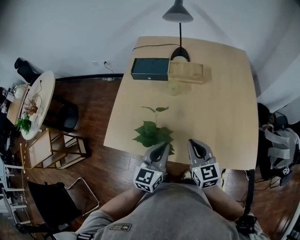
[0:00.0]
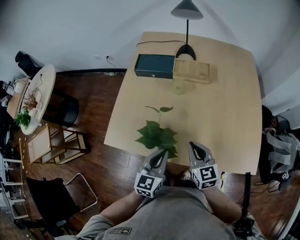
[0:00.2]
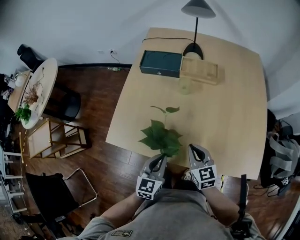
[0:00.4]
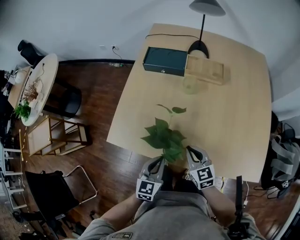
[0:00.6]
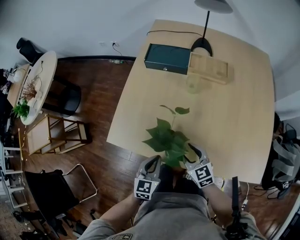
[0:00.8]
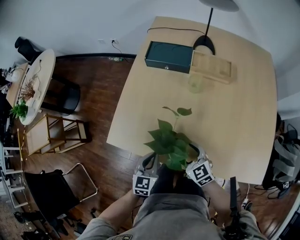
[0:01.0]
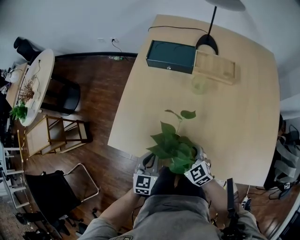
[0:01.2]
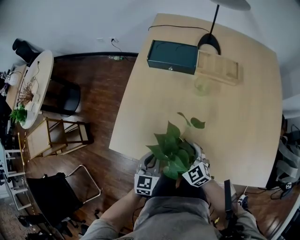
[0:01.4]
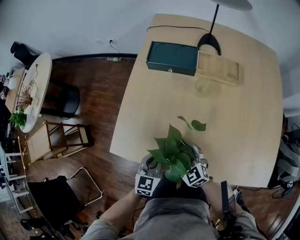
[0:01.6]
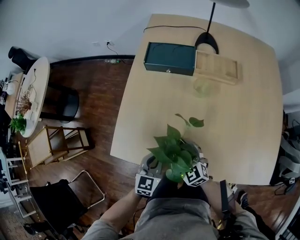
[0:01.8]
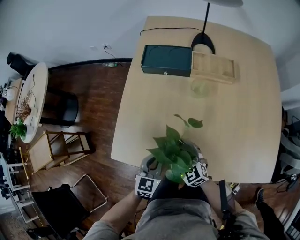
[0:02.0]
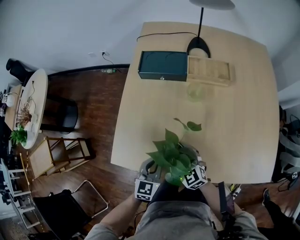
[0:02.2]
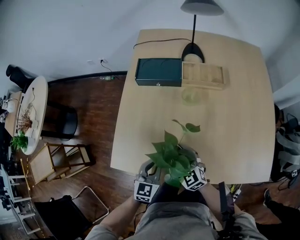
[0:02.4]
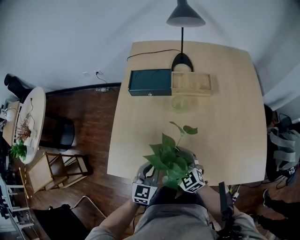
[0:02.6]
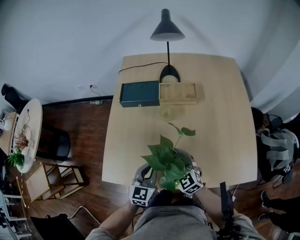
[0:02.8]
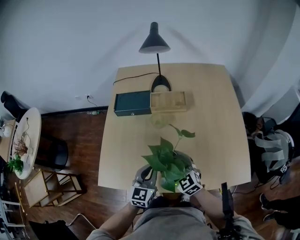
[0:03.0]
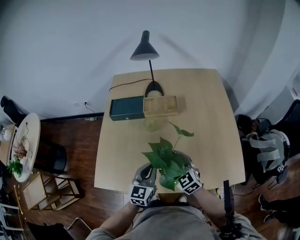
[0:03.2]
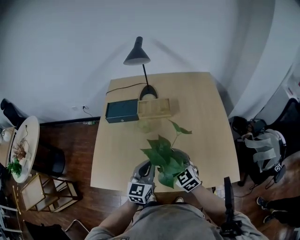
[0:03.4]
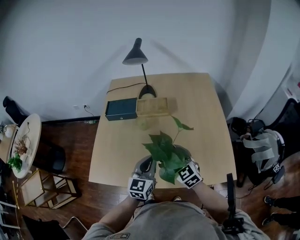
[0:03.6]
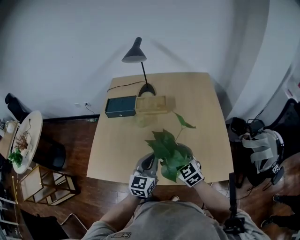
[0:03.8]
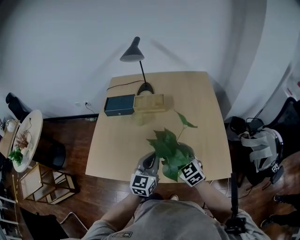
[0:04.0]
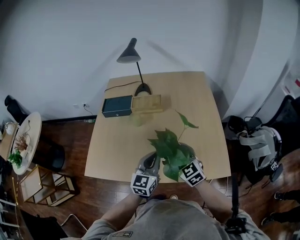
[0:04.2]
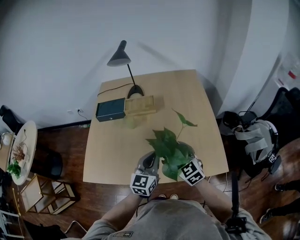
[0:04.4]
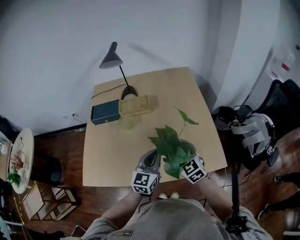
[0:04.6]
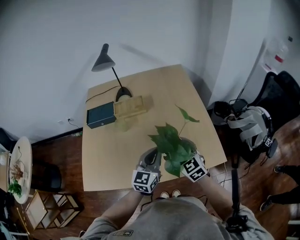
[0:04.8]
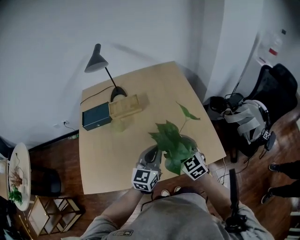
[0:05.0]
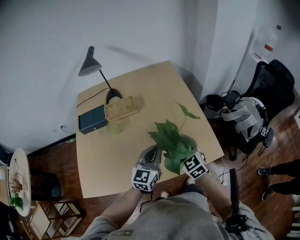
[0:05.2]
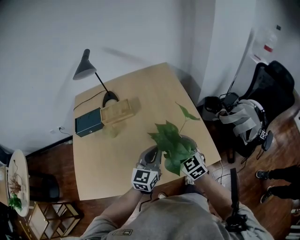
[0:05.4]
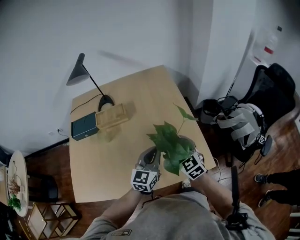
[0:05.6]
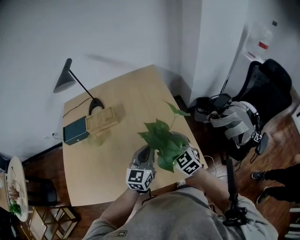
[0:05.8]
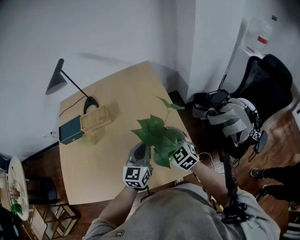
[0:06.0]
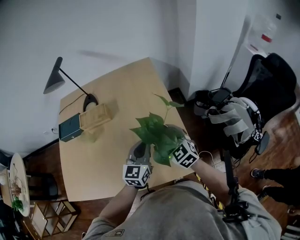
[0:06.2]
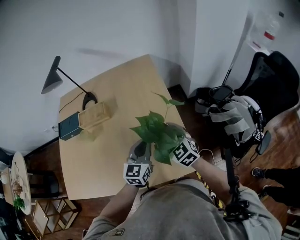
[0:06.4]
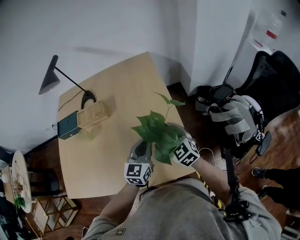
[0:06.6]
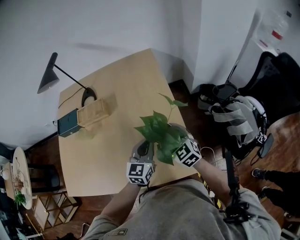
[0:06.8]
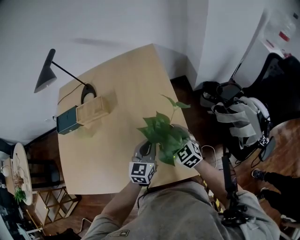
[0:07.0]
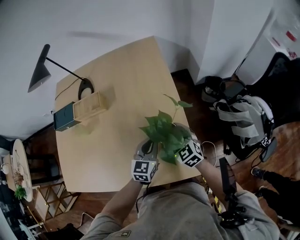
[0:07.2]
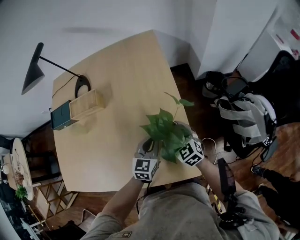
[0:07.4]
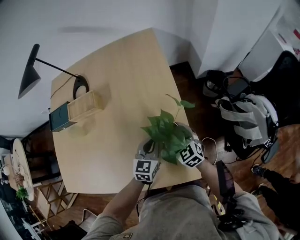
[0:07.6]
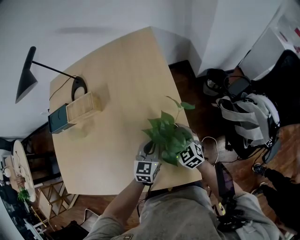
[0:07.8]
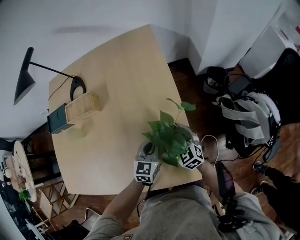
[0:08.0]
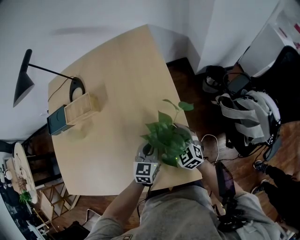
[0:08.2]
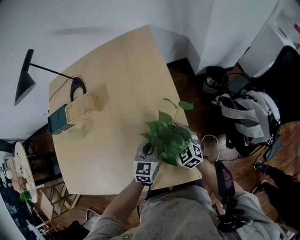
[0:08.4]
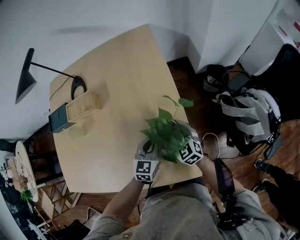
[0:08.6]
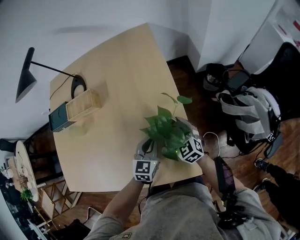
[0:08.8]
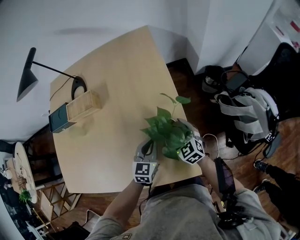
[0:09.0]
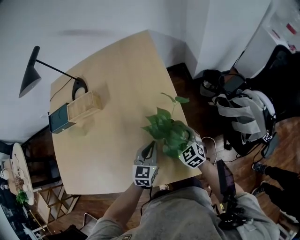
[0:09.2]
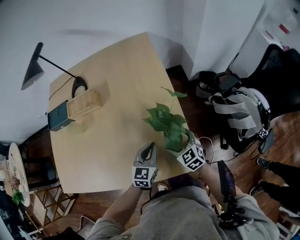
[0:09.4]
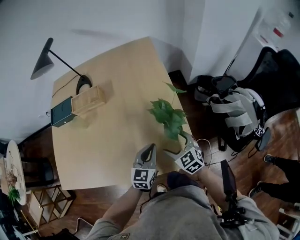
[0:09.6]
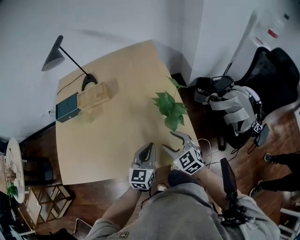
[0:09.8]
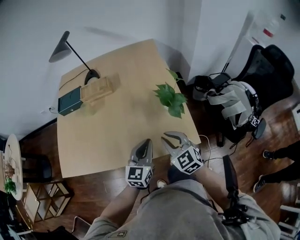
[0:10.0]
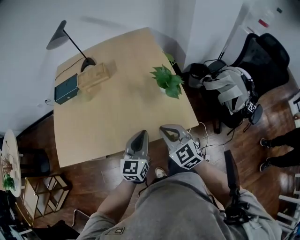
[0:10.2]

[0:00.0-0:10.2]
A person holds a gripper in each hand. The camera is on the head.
0:00.0 to 0:01.4: The grippers both shift downward and to the left by approximately 20 cm. The right gripper swivels about 40 degrees, and opens its fingers.
0:01.4 to 0:03.0: The left gripper heads to the right and upward, covering about 15 cm, and rotates about 20 degrees, while the right gripper moves upward and to the right, some 15 cm.
0:03.0 to 0:04.4: The two grippers go roughly 20 cm to the right and upward.
0:04.4 to 0:05.8: The grippers both shift to the right and forward by approximately 20 cm.
0:05.8 to 0:07.2: The two grippers go approximately 15 cm downward, to the right and forward.
0:07.2 to 0:08.8: The right gripper goes roughly 5 cm downward.
0:08.8 to 0:10.2: Both grippers travel together backward, upward and to the left, some 30 cm. The right gripper closes its fingers.

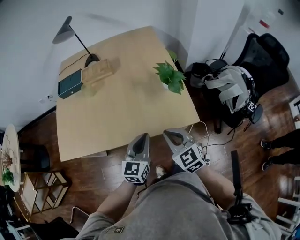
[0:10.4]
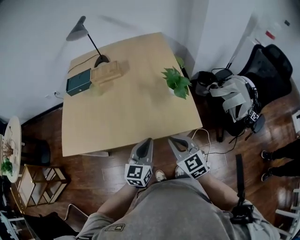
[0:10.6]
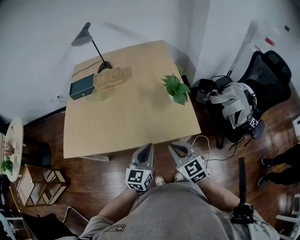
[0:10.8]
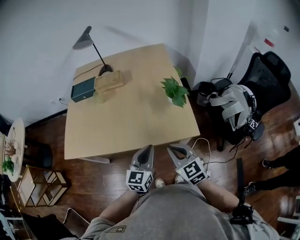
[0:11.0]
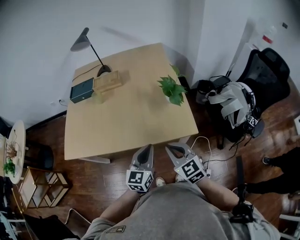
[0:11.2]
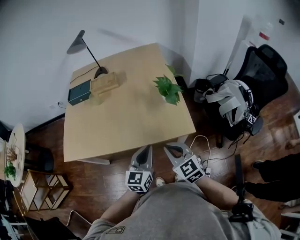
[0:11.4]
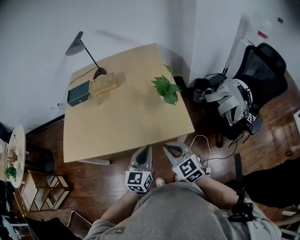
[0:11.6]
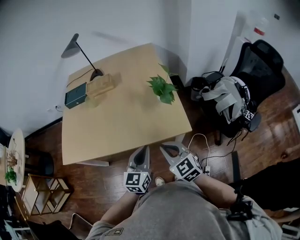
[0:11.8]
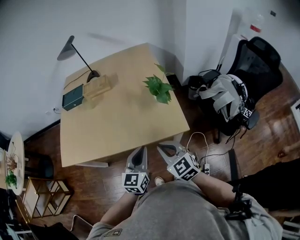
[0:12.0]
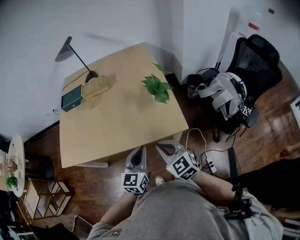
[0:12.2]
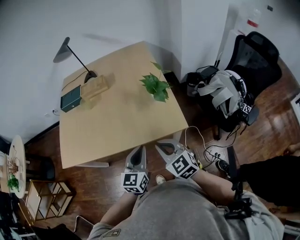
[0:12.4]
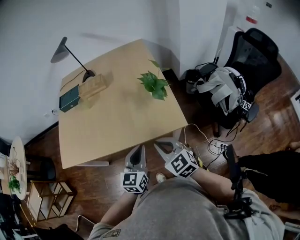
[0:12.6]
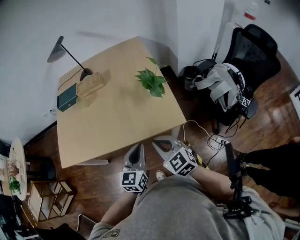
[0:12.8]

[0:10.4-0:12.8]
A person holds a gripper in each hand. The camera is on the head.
0:10.4 to 0:11.6: The right gripper heads backward, covering some 5 cm; the left gripper ends up roughly 5 cm from where it was.
0:11.6 to 0:12.8: The two grippers keep their place.

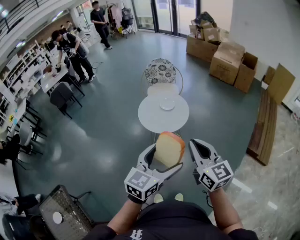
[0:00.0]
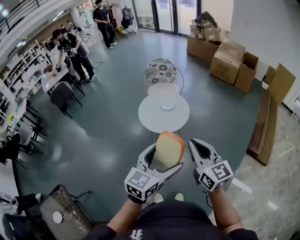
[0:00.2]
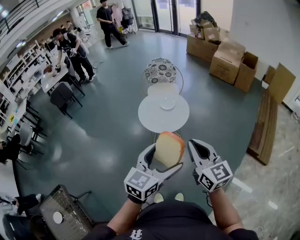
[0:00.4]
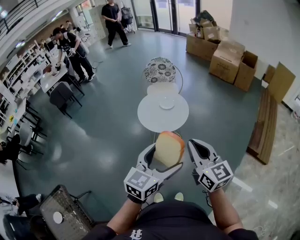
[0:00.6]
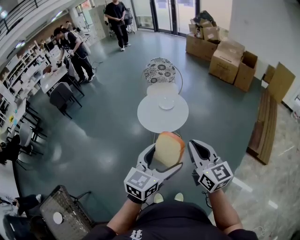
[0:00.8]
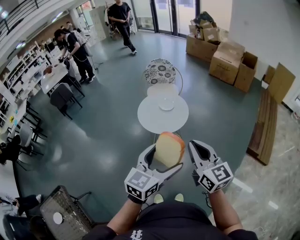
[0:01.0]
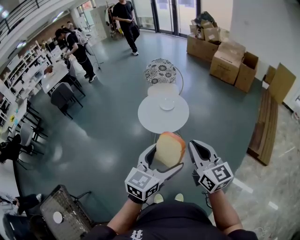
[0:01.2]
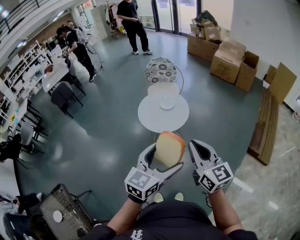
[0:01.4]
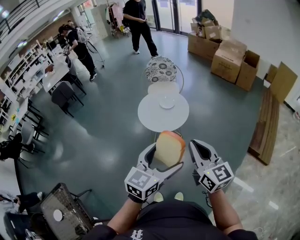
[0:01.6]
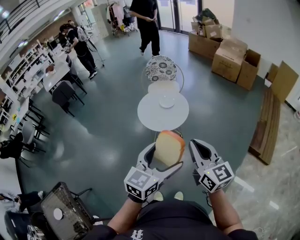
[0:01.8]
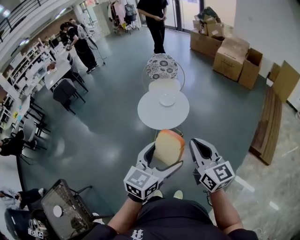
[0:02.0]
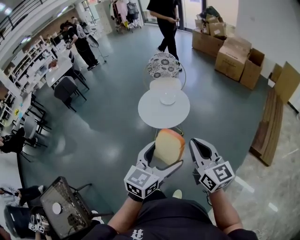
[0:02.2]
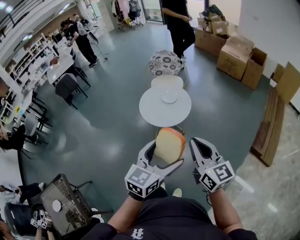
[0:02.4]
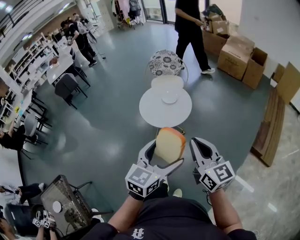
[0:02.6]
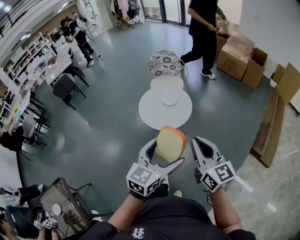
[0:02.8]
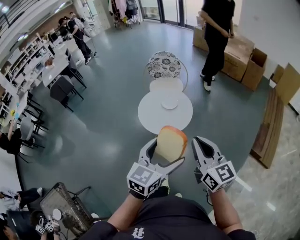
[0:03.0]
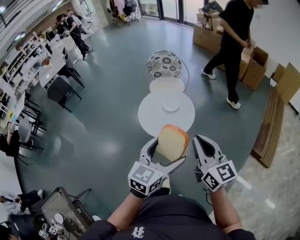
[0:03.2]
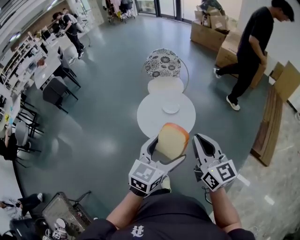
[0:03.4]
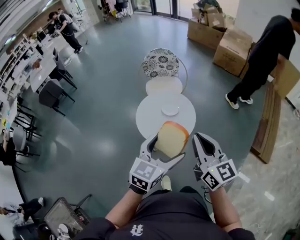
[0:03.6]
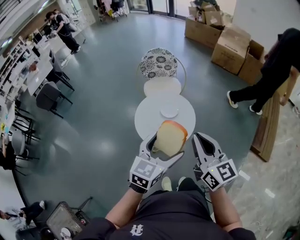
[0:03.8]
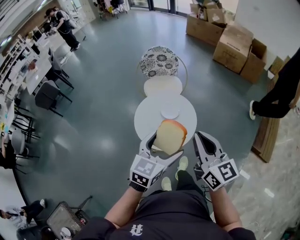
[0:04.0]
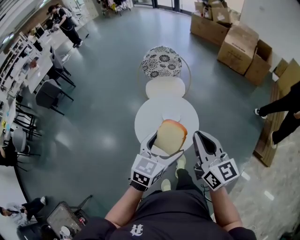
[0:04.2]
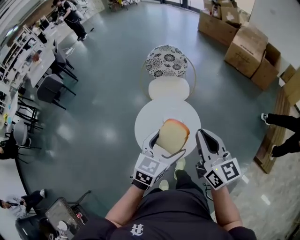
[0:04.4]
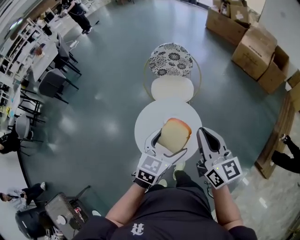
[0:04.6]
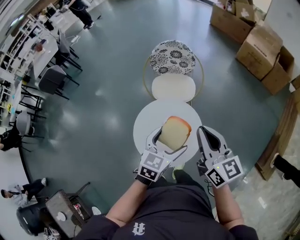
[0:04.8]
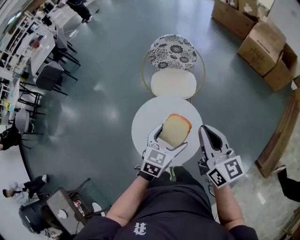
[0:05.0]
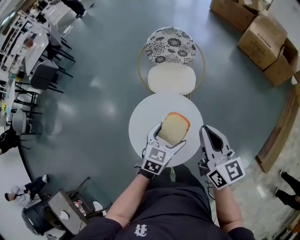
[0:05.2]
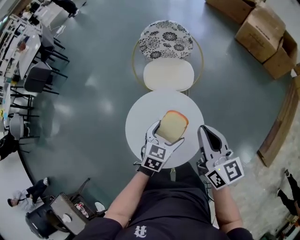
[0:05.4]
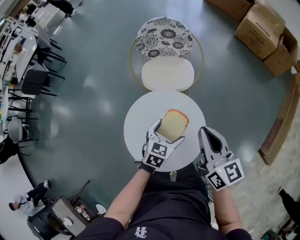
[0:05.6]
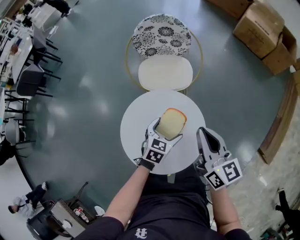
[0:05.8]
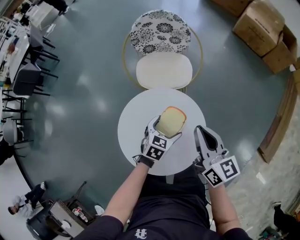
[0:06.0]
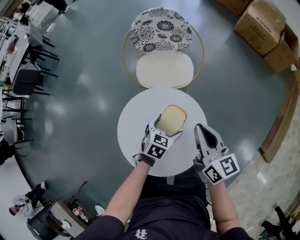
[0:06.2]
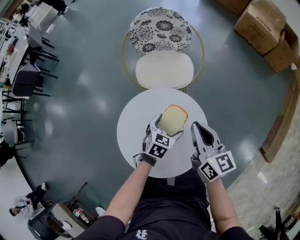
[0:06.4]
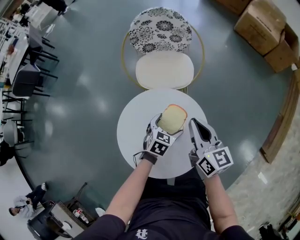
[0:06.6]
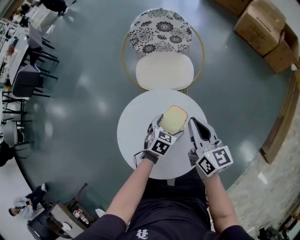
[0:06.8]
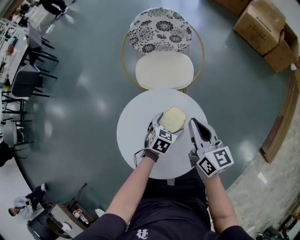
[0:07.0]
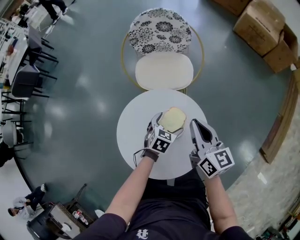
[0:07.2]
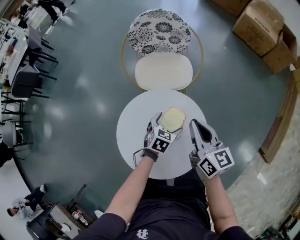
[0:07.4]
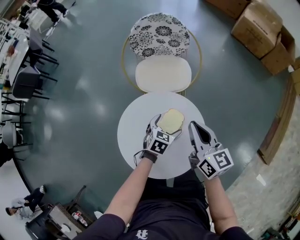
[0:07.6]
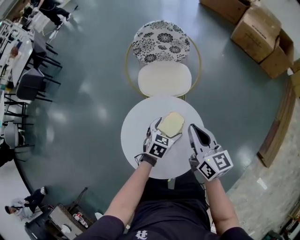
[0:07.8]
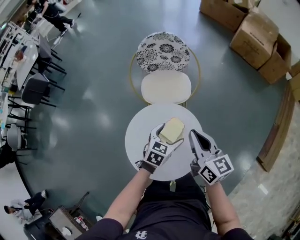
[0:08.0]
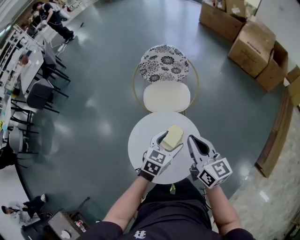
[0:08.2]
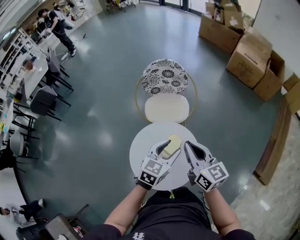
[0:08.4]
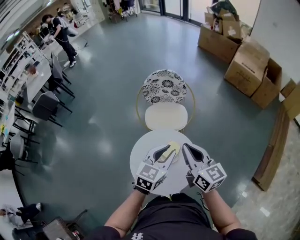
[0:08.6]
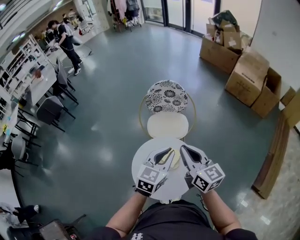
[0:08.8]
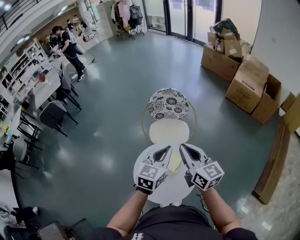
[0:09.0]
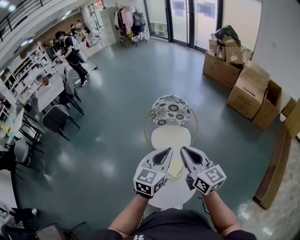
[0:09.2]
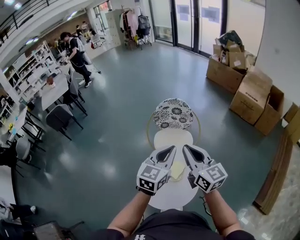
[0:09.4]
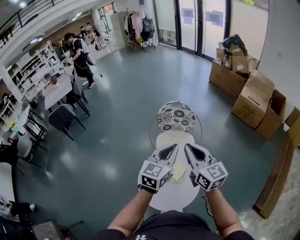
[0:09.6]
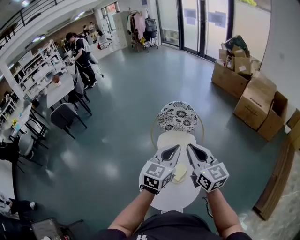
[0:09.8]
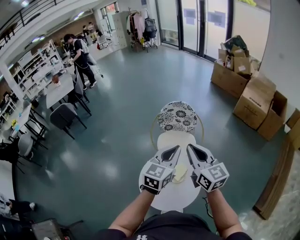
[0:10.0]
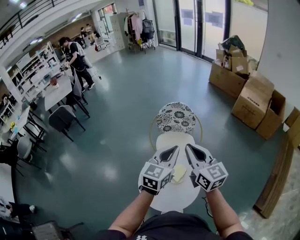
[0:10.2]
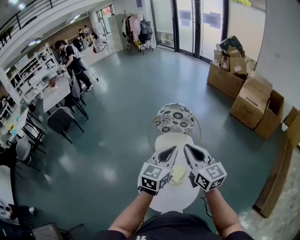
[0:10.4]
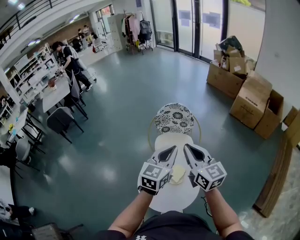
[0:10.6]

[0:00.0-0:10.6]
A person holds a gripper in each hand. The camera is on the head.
0:00.0 to 0:01.6: The grippers make only small movements.
0:01.6 to 0:03.0: Both grippers move forward, some 10 cm.
0:03.0 to 0:04.6: Both grippers move forward, about 40 cm.
0:04.6 to 0:06.0: The two grippers go roughly 30 cm downward and forward. The left gripper turns by roughly 20 degrees.
0:07.6 to 0:09.0: The right gripper moves upward, some 25 cm, while the left gripper shifts approximately 40 cm upward, angles its fingers upward, by some 30 degrees, and closes its fingers.
0:09.0 to 0:10.6: Both grippers move upward, approximately 5 cm.
